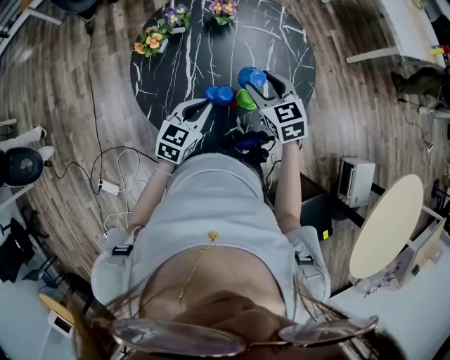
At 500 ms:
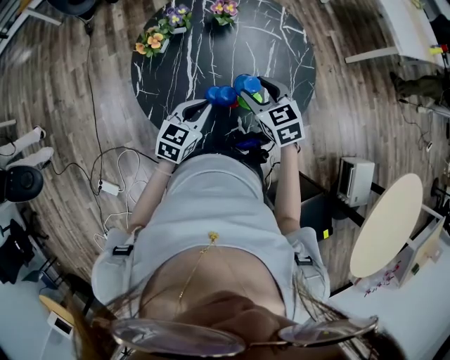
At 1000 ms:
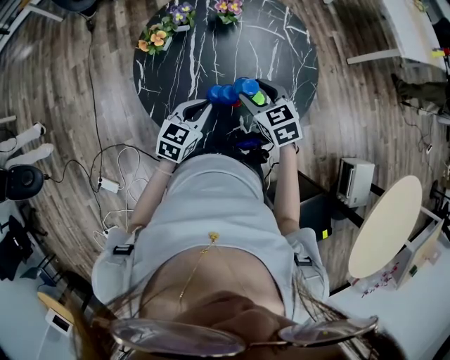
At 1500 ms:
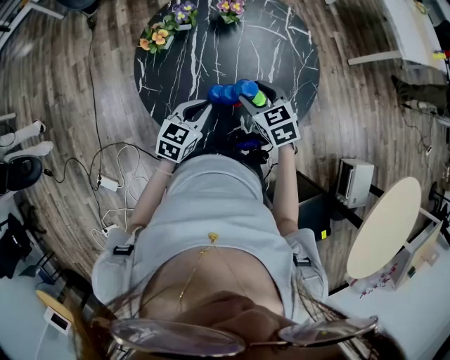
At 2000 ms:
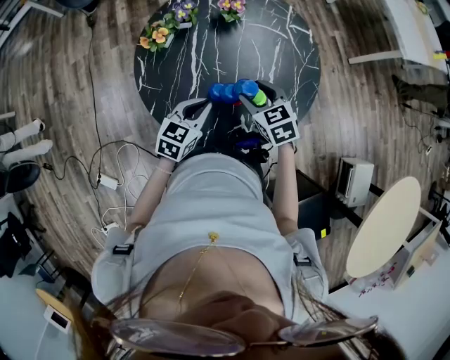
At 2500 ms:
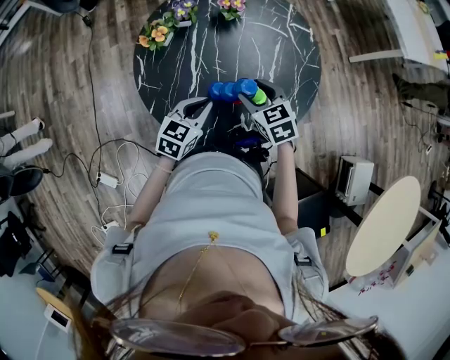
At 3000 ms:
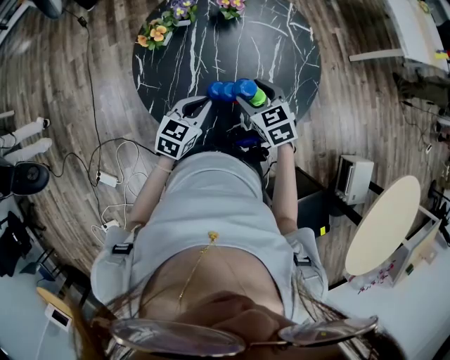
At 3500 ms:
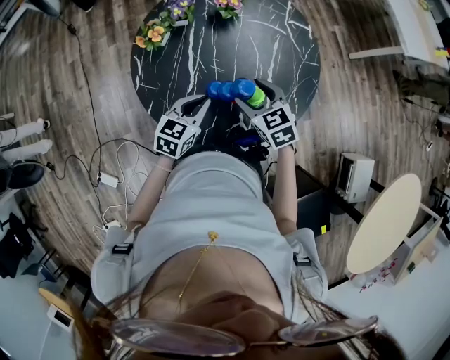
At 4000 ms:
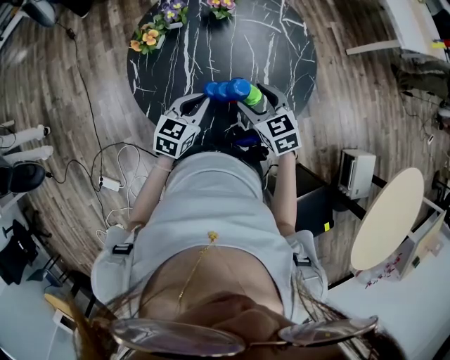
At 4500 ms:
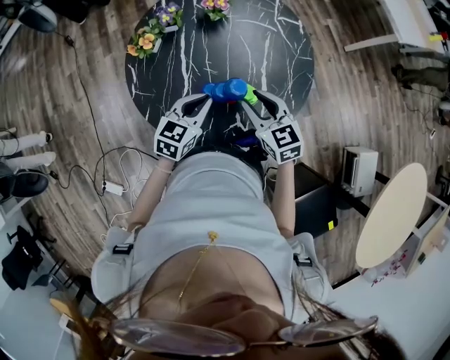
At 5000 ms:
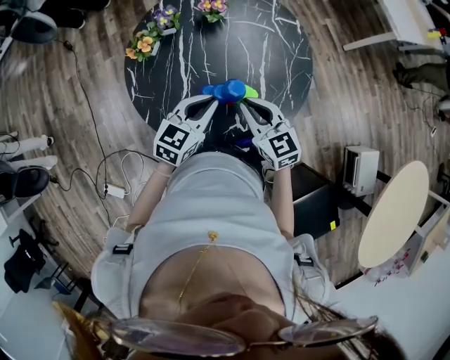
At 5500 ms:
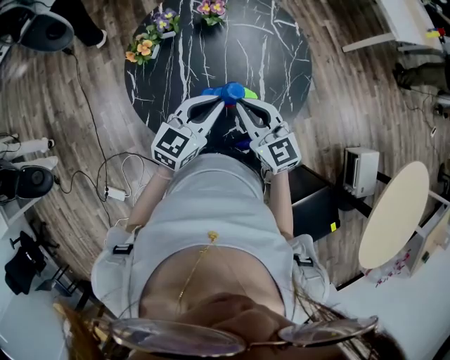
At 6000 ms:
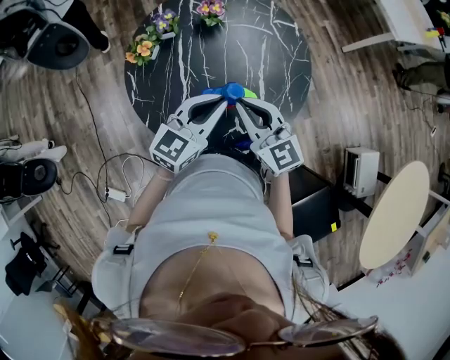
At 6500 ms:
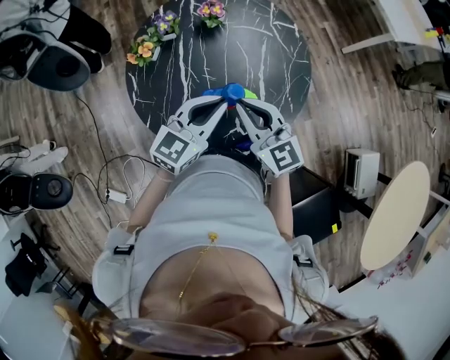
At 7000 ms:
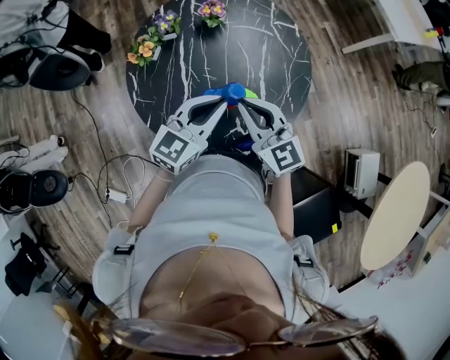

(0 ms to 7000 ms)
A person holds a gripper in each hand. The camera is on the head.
0 ms - 2000 ms: The right gripper moves some 5 cm.
2000 ms - 3500 ms: The two grippers keep their place.
3500 ms - 5000 ms: The right gripper moves approximately 5 cm, and closes; the left gripper travels upward by some 5 cm.
5000 ms - 7000 ms: The grippers both shift upward by approximately 5 cm.

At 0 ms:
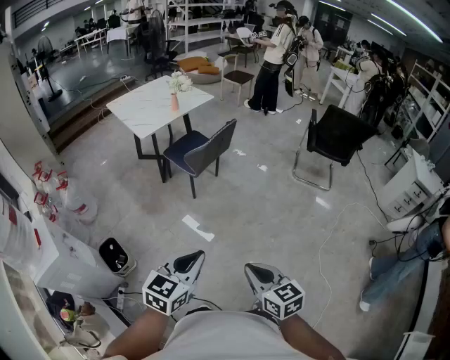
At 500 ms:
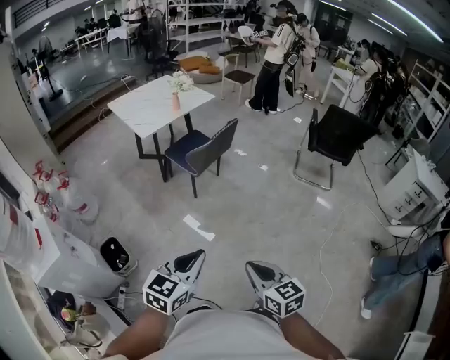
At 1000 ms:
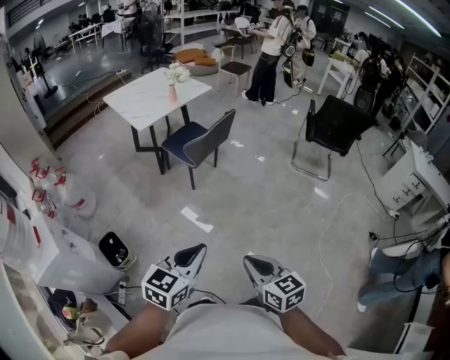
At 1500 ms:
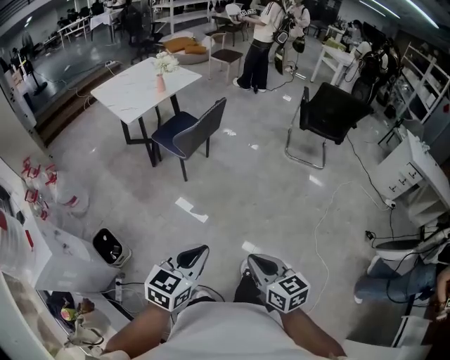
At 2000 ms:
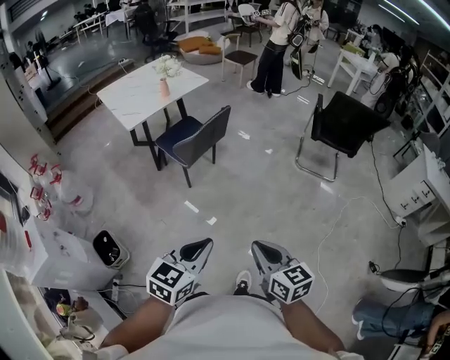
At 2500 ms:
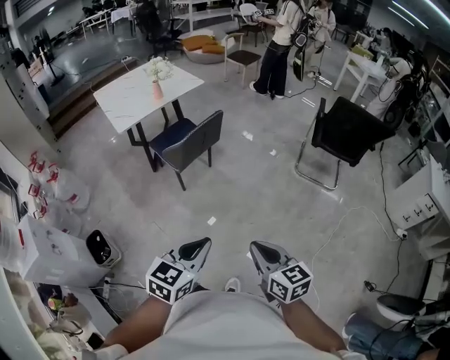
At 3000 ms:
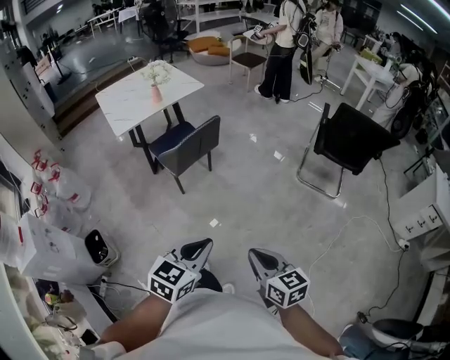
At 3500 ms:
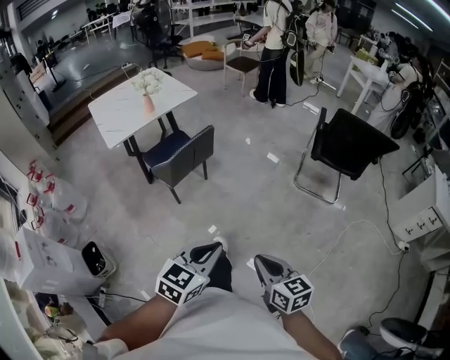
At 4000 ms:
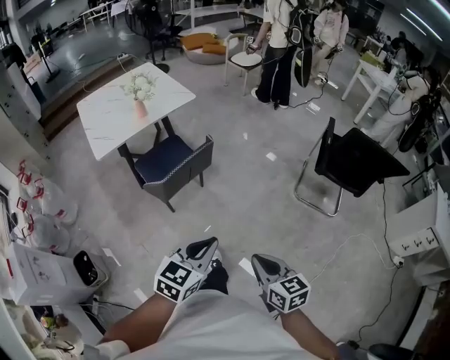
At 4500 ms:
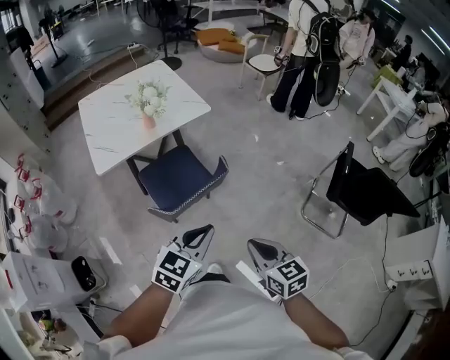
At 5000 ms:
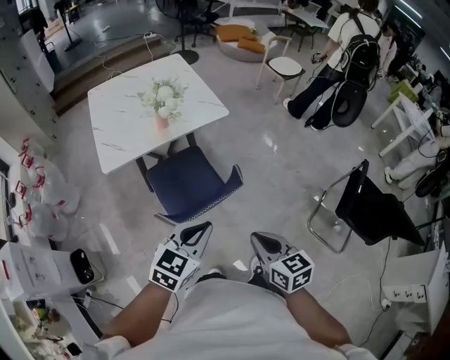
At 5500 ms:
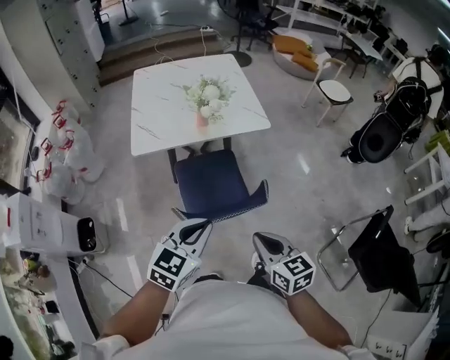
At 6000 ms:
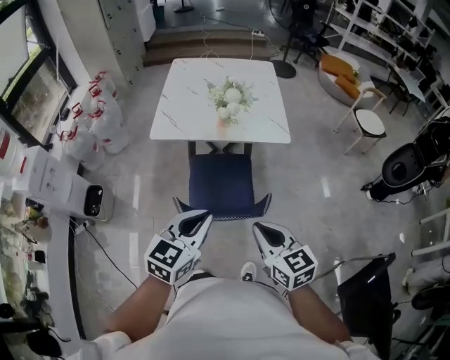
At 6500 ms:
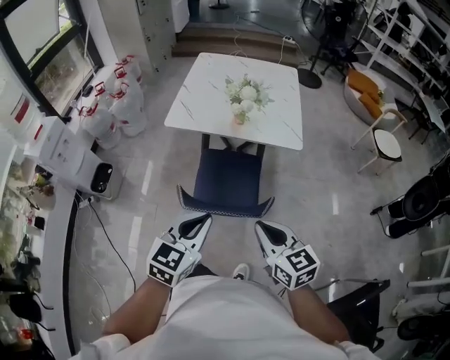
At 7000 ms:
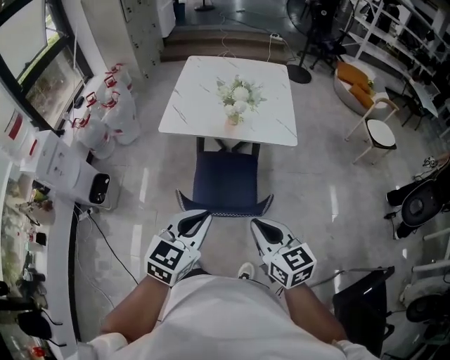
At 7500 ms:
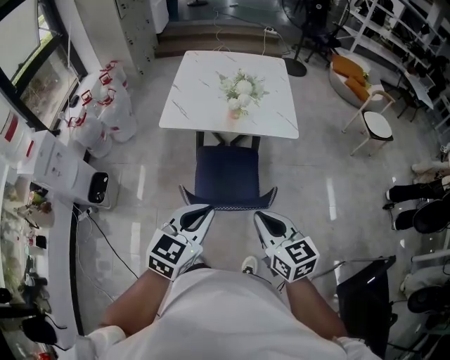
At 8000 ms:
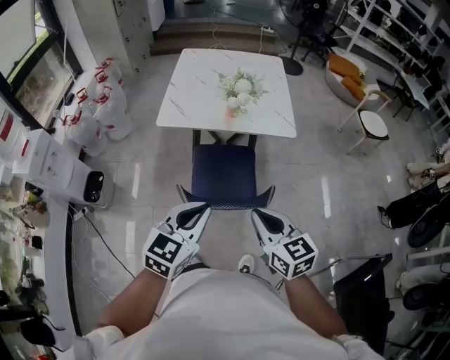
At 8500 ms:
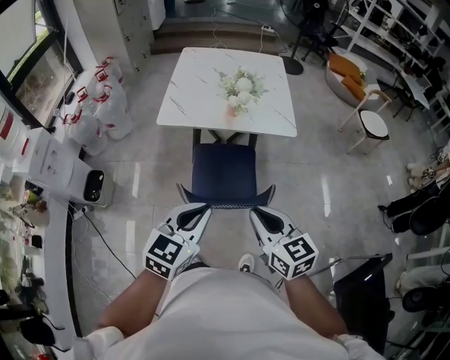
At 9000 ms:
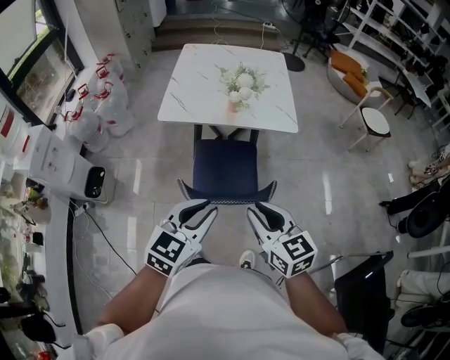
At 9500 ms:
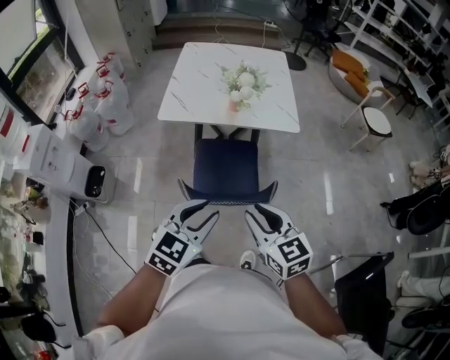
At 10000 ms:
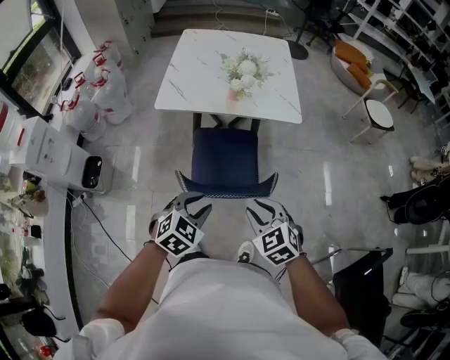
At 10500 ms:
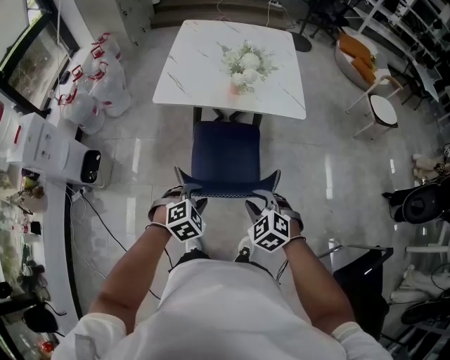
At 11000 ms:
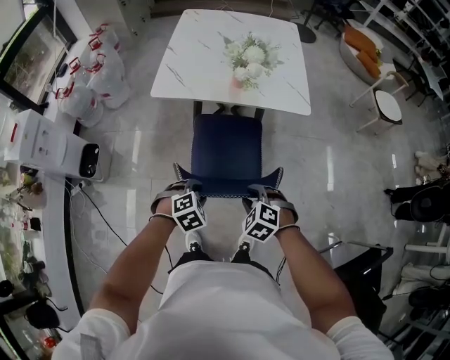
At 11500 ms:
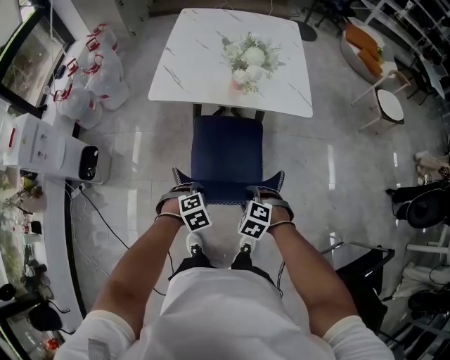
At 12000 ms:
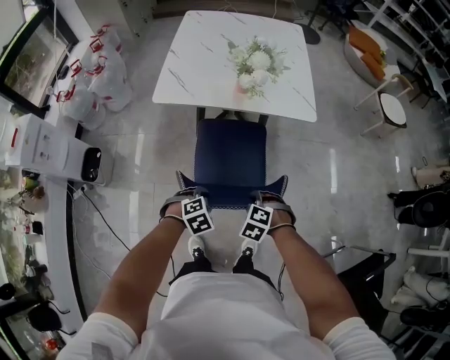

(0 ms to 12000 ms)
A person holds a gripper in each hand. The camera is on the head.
0 ms - 2000 ms: The two grippers go roughly 15 cm forward and to the right.
2000 ms - 4000 ms: Both grippers move forward and to the right, approximately 35 cm.
4000 ms - 6000 ms: The left gripper shifts by some 35 cm, and swivels approximately 50 degrees, while the right gripper moves some 50 cm, and swivels some 50 degrees.
6000 ms - 8000 ms: There are only small adjustments of the grippers.
8000 ms - 10000 ms: Both grippers travel together downward, some 10 cm. The left gripper swivels some 30 degrees, and opens its fingers; the right gripper changes its angle by some 40 degrees, and opens up.
10000 ms - 12000 ms: Both grippers travel together downward, about 20 cm. The right gripper angles its fingers downward, by some 30 degrees. Meanwhile the left gripper turns by approximately 30 degrees.

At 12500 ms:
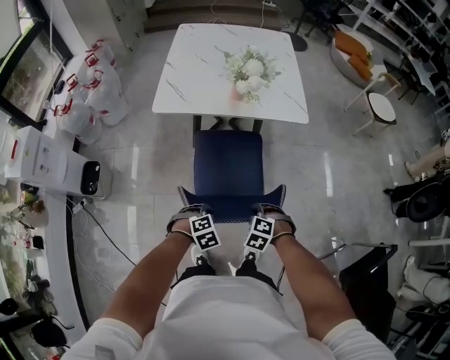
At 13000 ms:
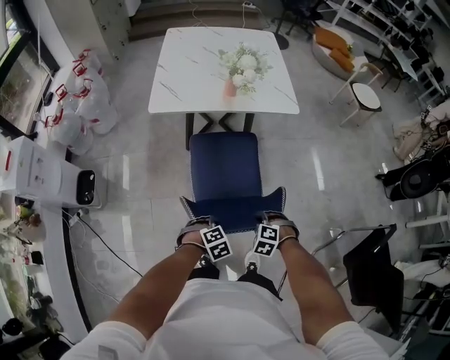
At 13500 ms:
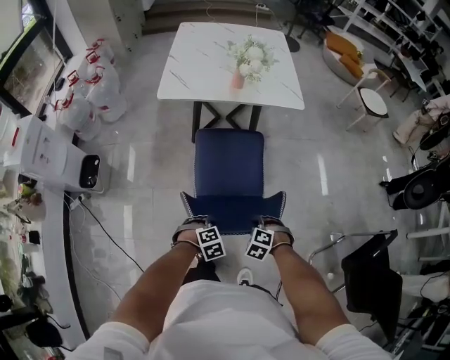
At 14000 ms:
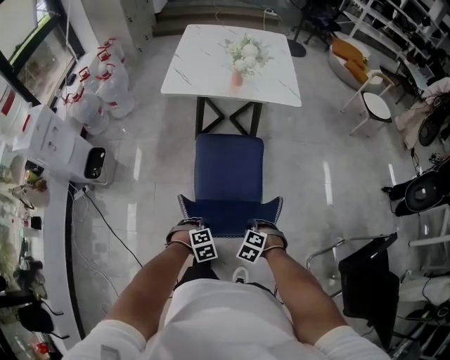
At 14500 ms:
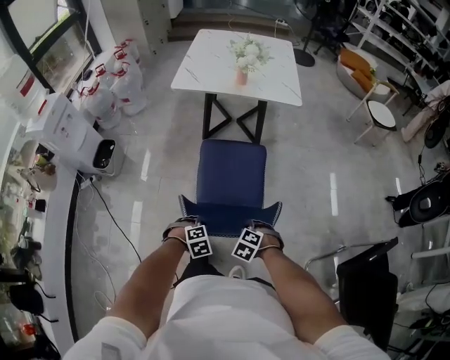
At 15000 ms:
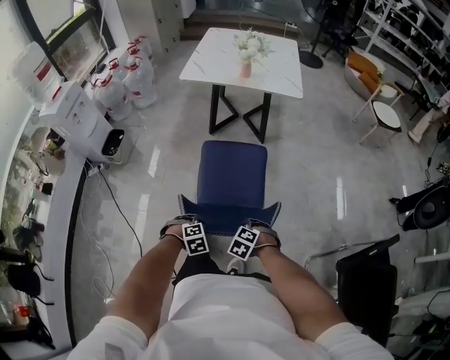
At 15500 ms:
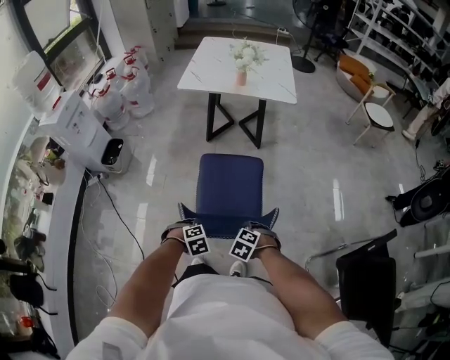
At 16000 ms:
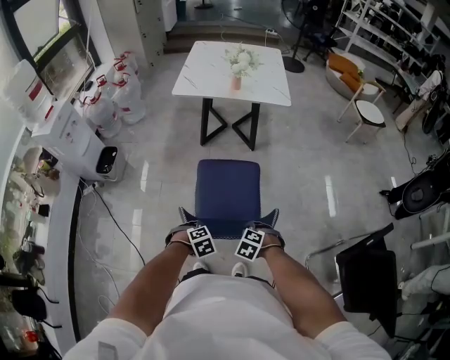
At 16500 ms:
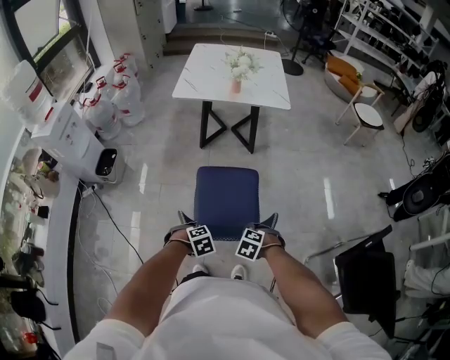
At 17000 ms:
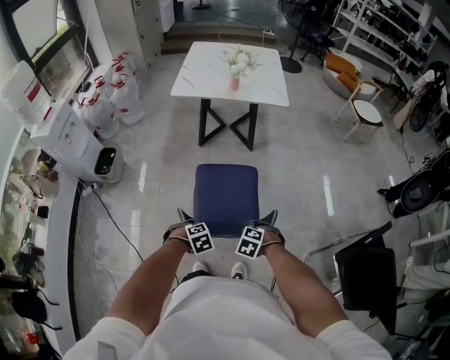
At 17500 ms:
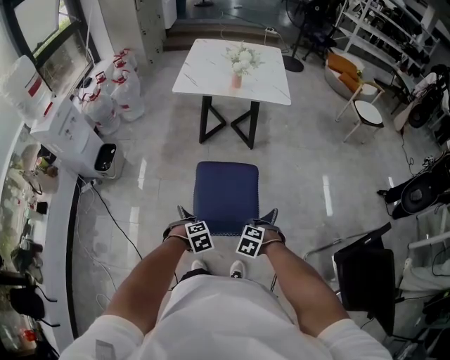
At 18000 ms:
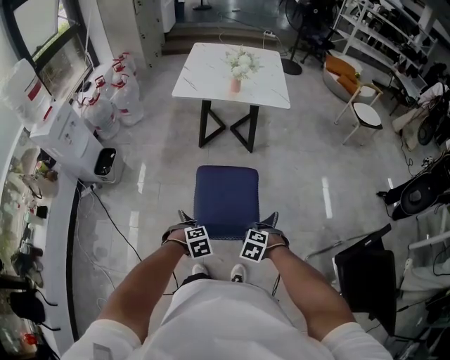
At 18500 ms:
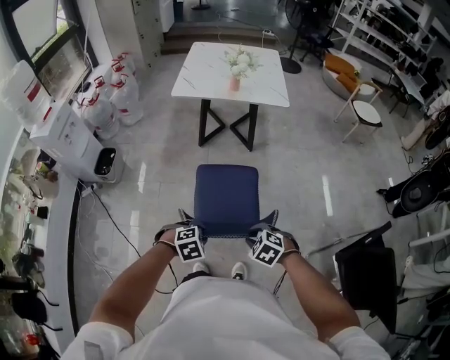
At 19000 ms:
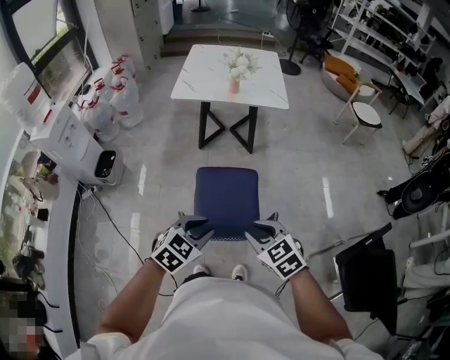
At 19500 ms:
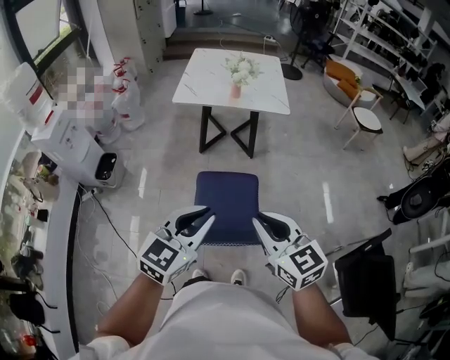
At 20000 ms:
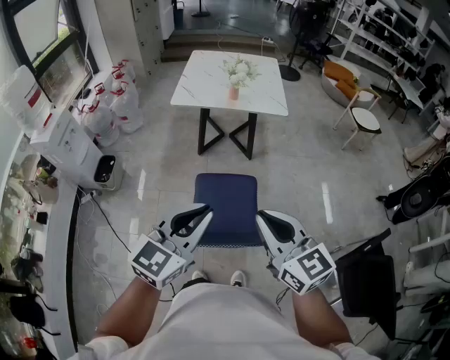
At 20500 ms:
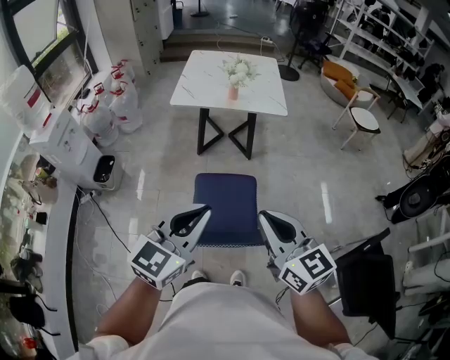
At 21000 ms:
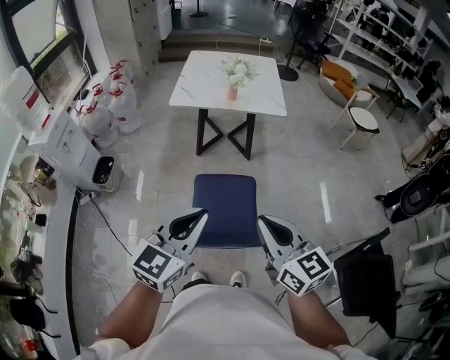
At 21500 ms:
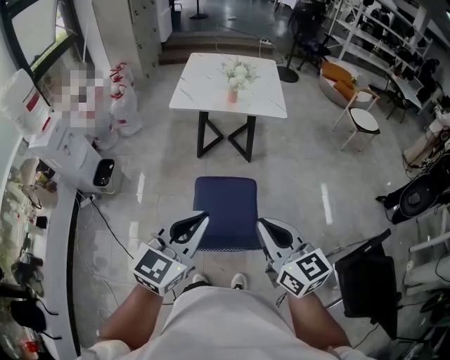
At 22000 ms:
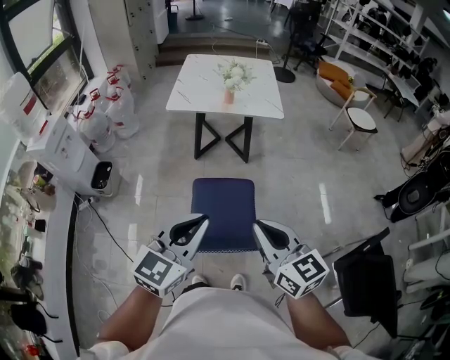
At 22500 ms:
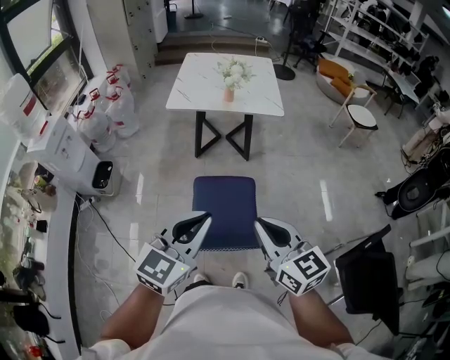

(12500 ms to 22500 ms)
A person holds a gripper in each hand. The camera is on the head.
12500 ms - 14500 ms: The left gripper ends up roughly 25 cm from where it was. Meanwhile the right gripper shifts by approximately 25 cm.
14500 ms - 16500 ms: The left gripper ends up some 10 cm from where it was. Meanwhile the right gripper ends up some 10 cm from where it was.
16500 ms - 18500 ms: Both grippers travel together upward, approximately 10 cm.
18500 ms - 20500 ms: The two grippers go some 30 cm upward. The left gripper angles its fingers upward, by some 60 degrees, and closes up; the right gripper tilts its fingers roughly 60 degrees upward, and closes its fingers.
20500 ms - 22500 ms: The grippers make only small movements.
